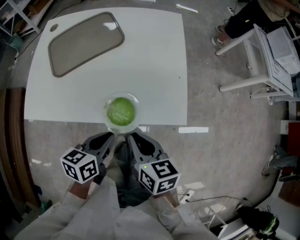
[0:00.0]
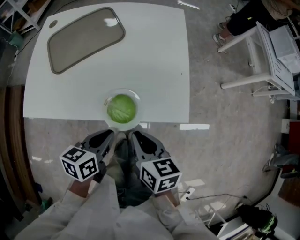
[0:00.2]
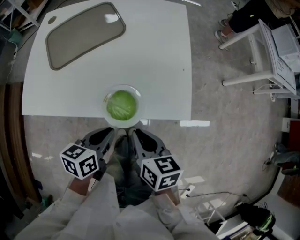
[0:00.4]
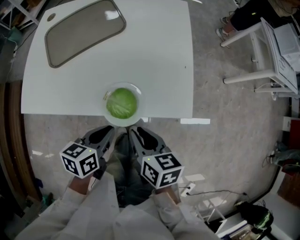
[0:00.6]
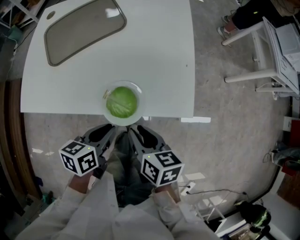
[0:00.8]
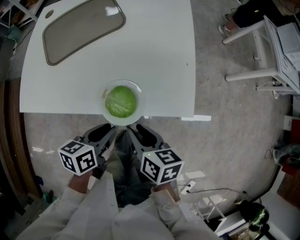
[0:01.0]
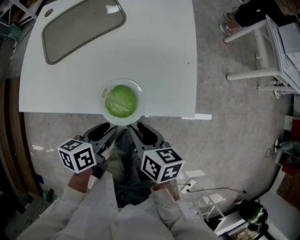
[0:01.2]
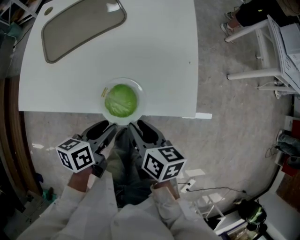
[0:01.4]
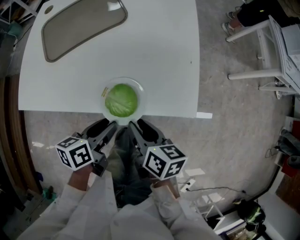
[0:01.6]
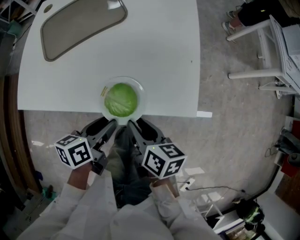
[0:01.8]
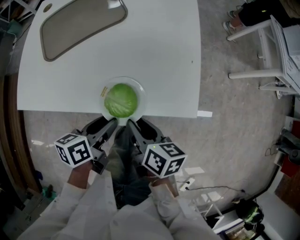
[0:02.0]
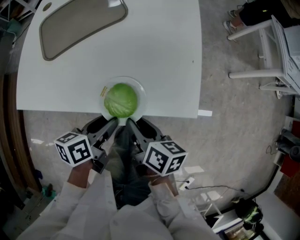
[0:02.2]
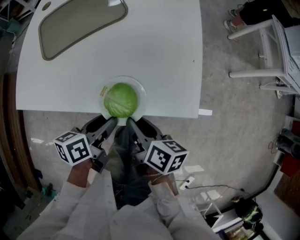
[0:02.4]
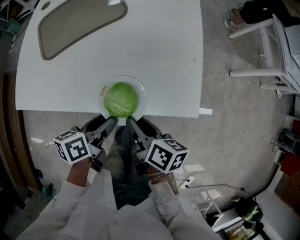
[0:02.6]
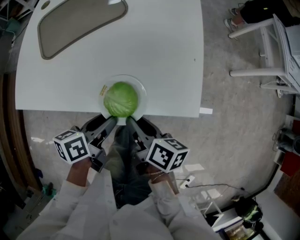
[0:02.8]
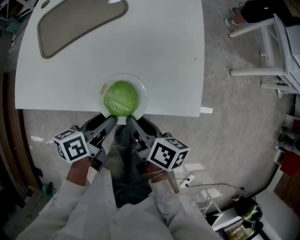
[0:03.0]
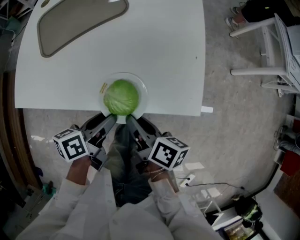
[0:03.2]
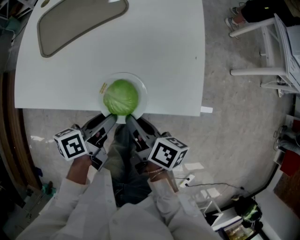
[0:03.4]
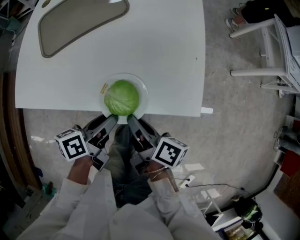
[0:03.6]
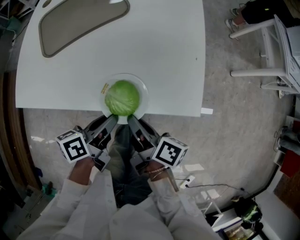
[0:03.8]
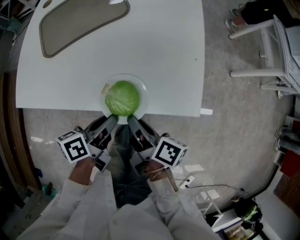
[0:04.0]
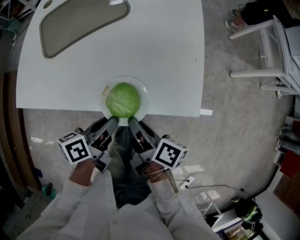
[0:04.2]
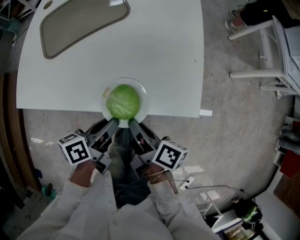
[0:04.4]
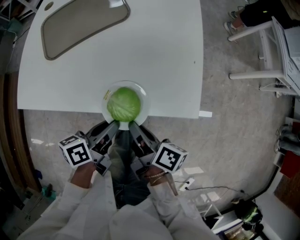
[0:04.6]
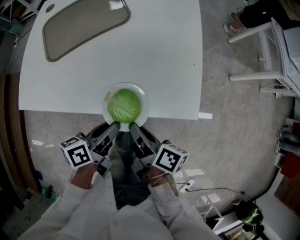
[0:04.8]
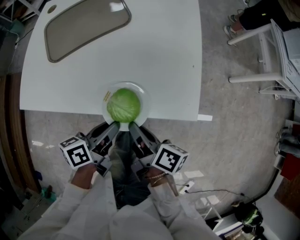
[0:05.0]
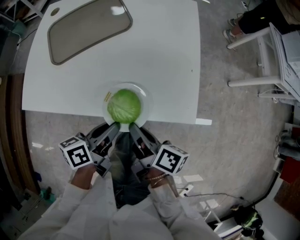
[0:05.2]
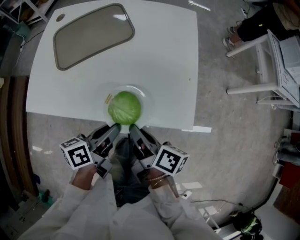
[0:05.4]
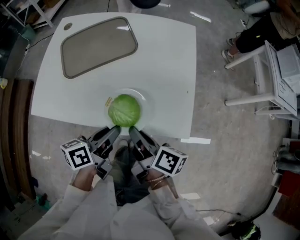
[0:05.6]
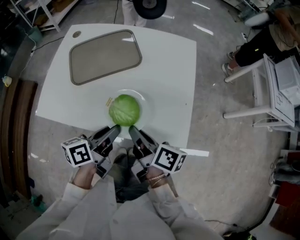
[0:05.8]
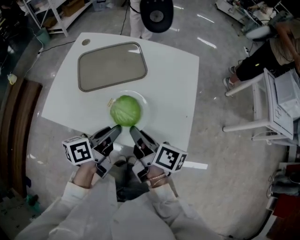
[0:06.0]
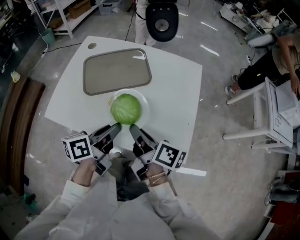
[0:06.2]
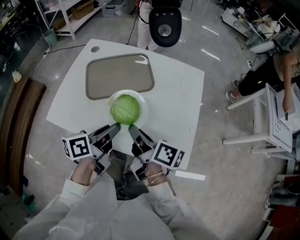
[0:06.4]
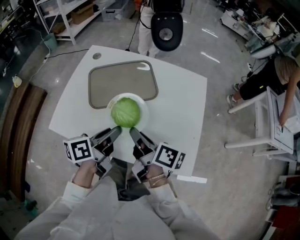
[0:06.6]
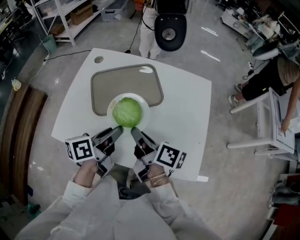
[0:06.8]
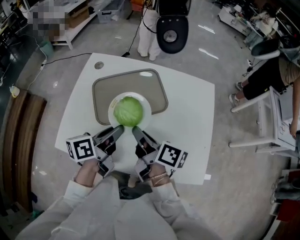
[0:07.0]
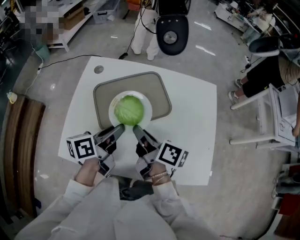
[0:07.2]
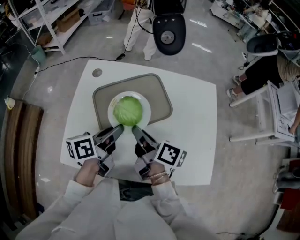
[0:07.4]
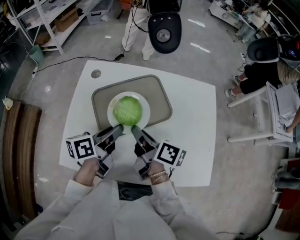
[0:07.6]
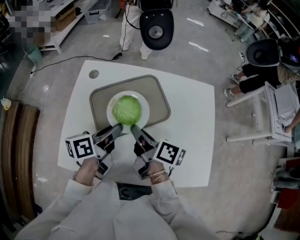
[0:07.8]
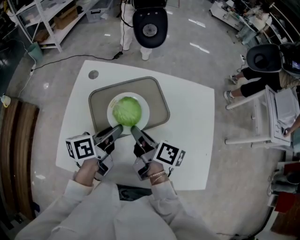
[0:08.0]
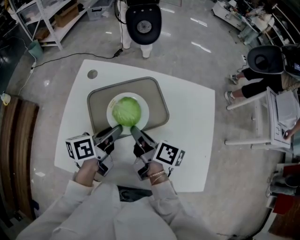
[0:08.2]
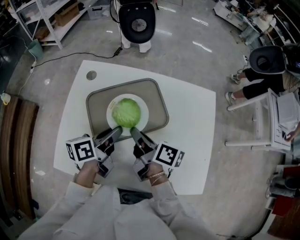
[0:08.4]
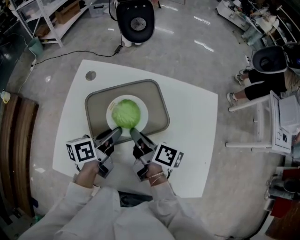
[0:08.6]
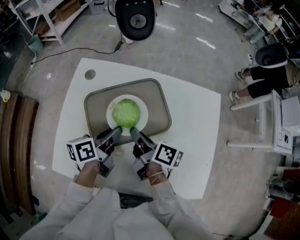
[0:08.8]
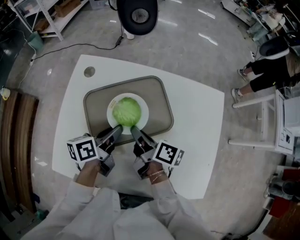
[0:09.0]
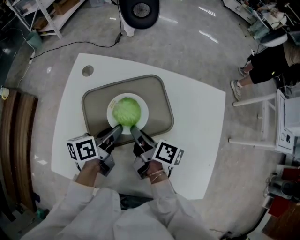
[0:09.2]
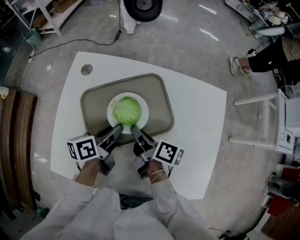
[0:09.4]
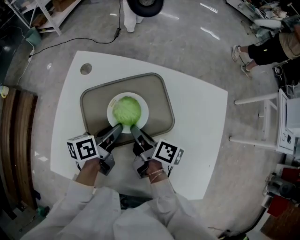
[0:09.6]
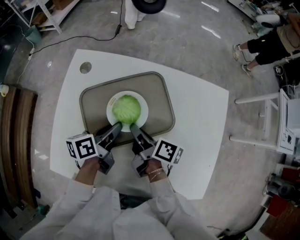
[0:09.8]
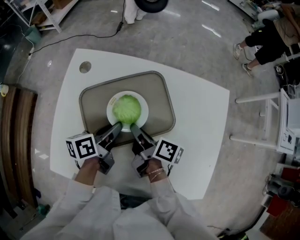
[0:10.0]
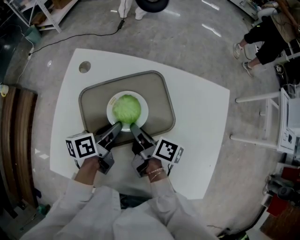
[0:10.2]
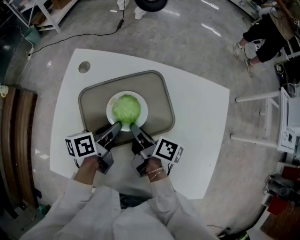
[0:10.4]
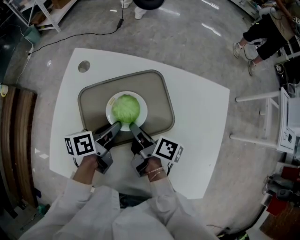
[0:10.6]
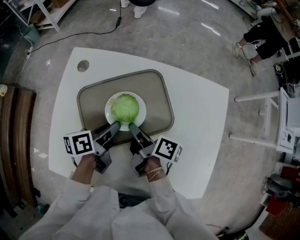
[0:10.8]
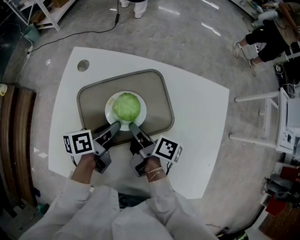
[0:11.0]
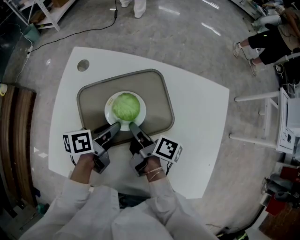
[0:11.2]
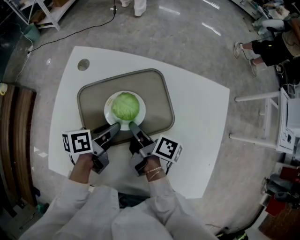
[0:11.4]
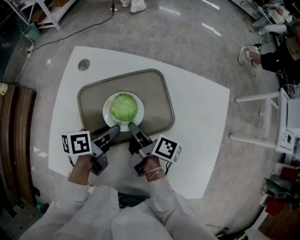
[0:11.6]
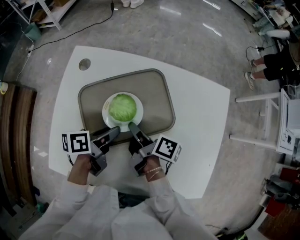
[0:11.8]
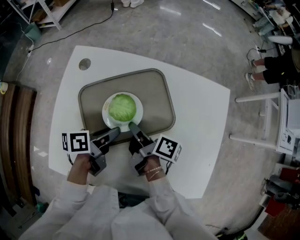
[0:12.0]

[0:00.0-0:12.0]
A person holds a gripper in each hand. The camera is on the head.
0:00.0 to 0:01.6: The two grippers go about 5 cm downward. The right gripper opens up, while the left gripper opens up.
0:01.6 to 0:03.0: There are only small adjustments of the grippers.
0:03.0 to 0:04.4: The right gripper closes up. The left gripper closes up.
0:04.4 to 0:06.0: Both grippers move upward and forward, some 15 cm.
0:06.0 to 0:07.6: Both grippers move forward and to the left, some 25 cm.
0:07.6 to 0:09.0: Both grippers travel together forward and downward, roughly 10 cm.
0:09.0 to 0:12.0: The grippers move only a little.

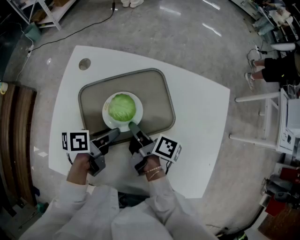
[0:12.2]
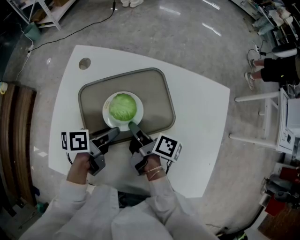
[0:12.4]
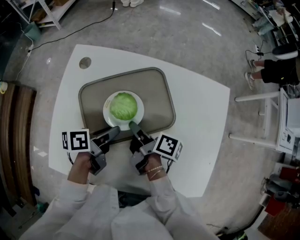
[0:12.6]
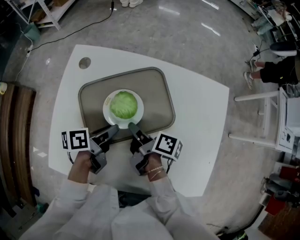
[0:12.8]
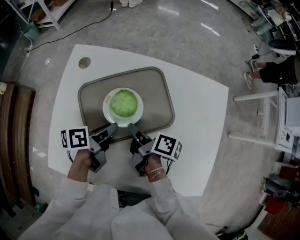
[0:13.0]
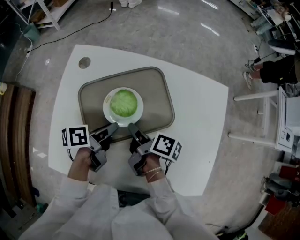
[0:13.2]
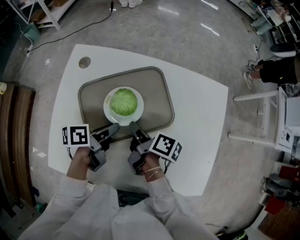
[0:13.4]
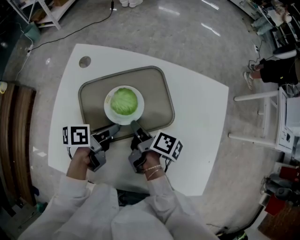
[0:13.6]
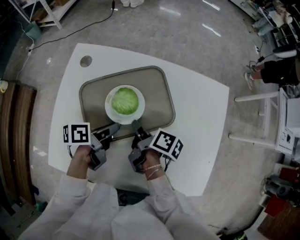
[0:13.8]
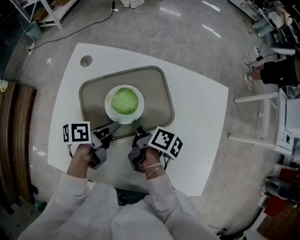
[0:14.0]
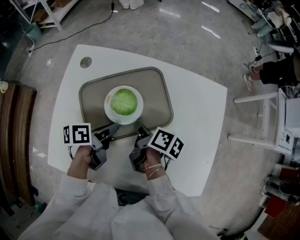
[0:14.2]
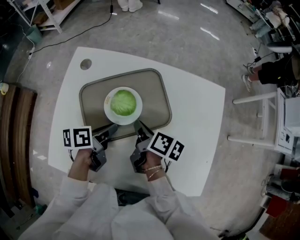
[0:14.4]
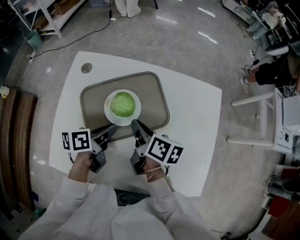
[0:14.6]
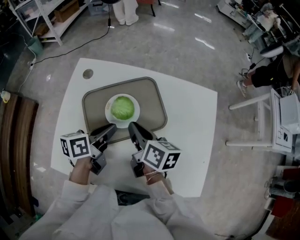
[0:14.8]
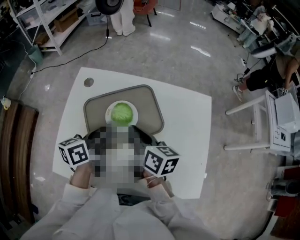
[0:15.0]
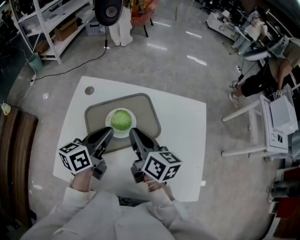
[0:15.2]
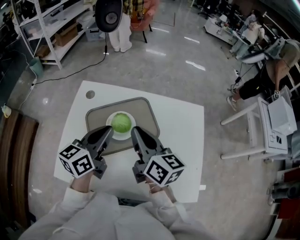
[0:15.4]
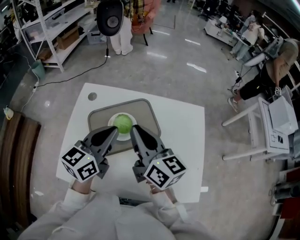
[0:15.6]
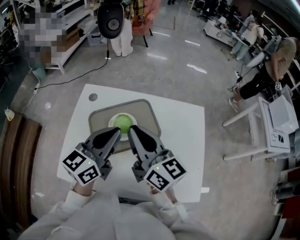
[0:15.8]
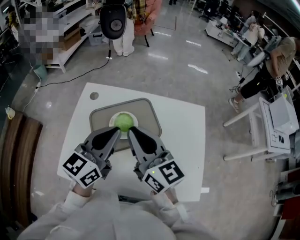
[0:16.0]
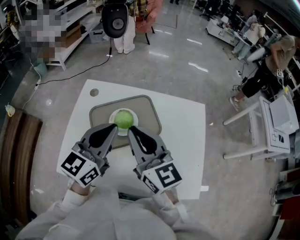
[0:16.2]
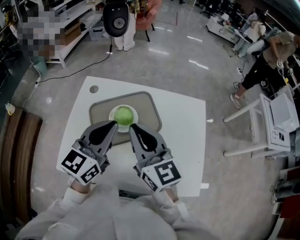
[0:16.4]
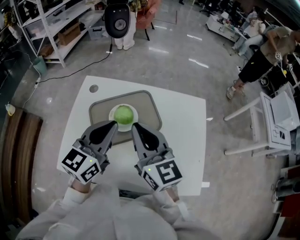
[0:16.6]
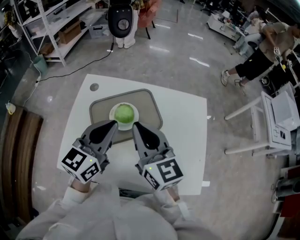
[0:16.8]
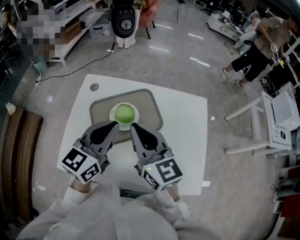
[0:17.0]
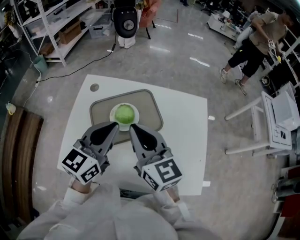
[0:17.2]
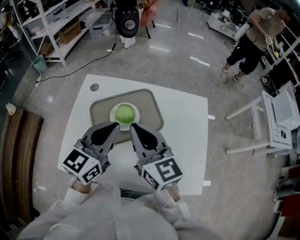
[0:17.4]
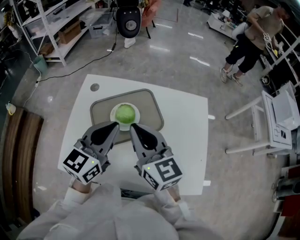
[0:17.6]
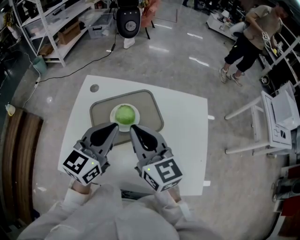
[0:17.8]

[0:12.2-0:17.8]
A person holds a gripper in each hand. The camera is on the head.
0:12.2 to 0:13.6: The grippers stay close to where they were, moving slightly.
0:13.6 to 0:15.0: The grippers both shift upward by some 10 cm. The right gripper rolls counterclockwise, seen from behind, by roughly 40 degrees. Meanwhile the left gripper swivels some 30 degrees.
0:15.0 to 0:16.4: The two grippers go approximately 15 cm upward. The right gripper rotates roughly 40 degrees, while the left gripper rotates around the line of its fingers by approximately 40 degrees, clockwise from behind.
0:16.4 to 0:17.8: The grippers make only small movements.

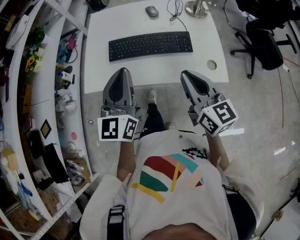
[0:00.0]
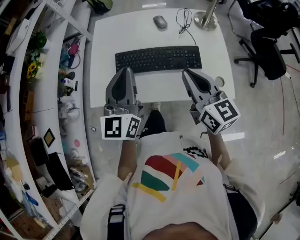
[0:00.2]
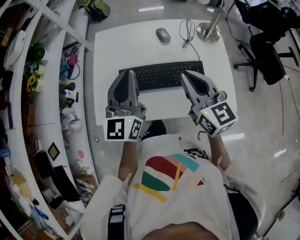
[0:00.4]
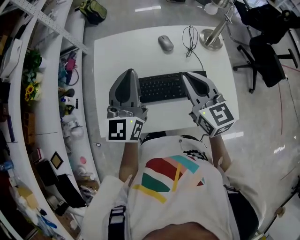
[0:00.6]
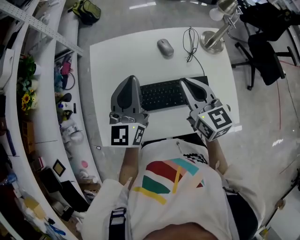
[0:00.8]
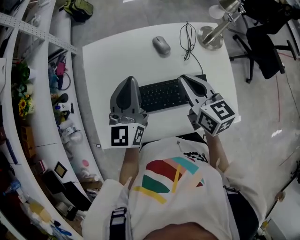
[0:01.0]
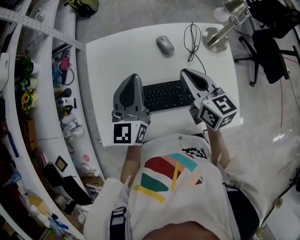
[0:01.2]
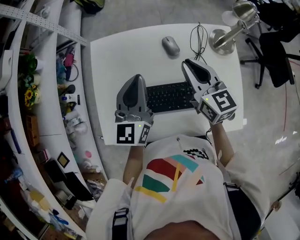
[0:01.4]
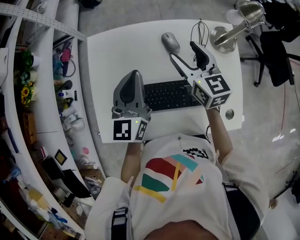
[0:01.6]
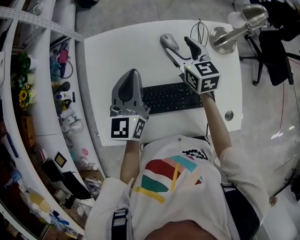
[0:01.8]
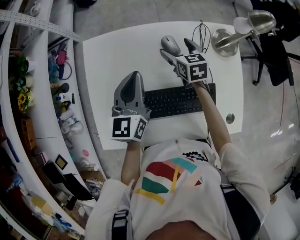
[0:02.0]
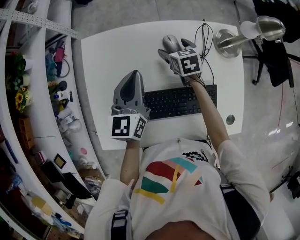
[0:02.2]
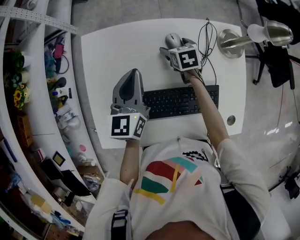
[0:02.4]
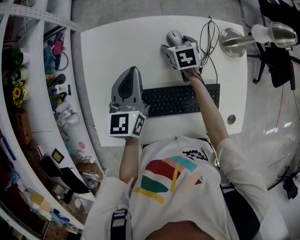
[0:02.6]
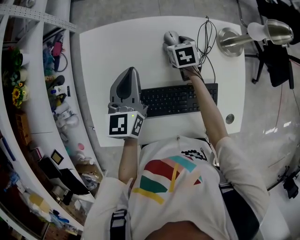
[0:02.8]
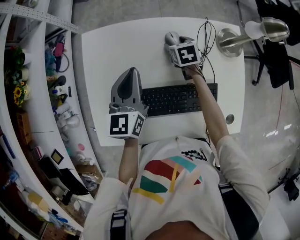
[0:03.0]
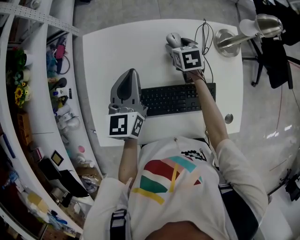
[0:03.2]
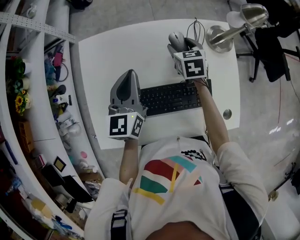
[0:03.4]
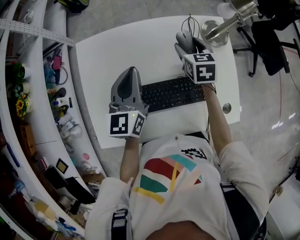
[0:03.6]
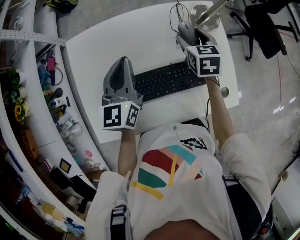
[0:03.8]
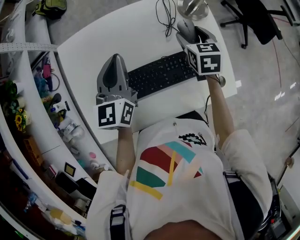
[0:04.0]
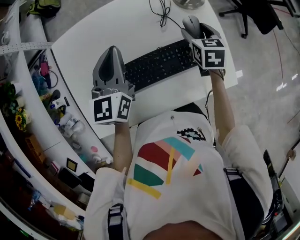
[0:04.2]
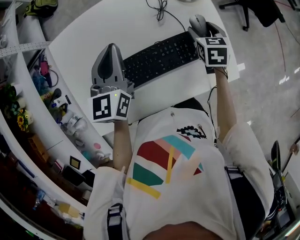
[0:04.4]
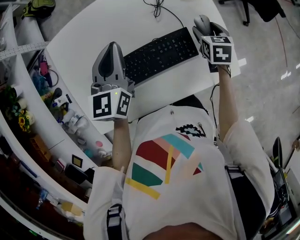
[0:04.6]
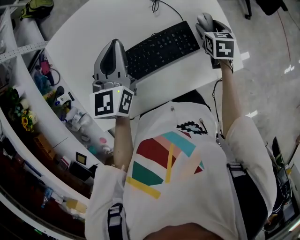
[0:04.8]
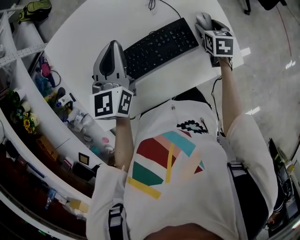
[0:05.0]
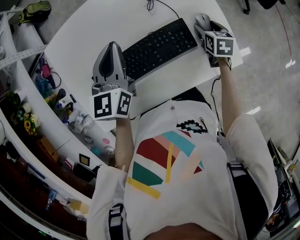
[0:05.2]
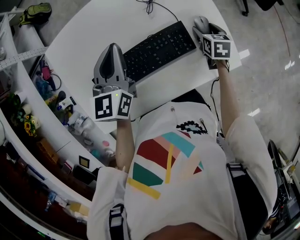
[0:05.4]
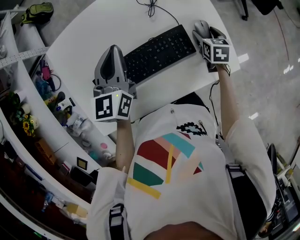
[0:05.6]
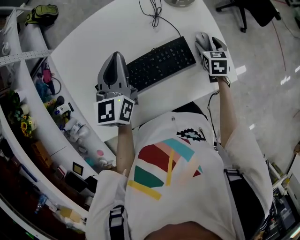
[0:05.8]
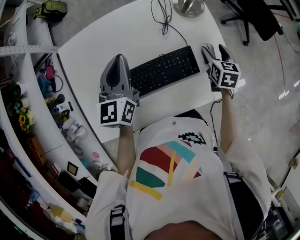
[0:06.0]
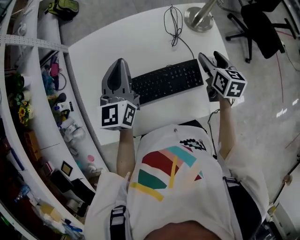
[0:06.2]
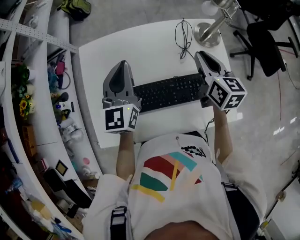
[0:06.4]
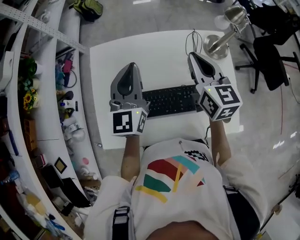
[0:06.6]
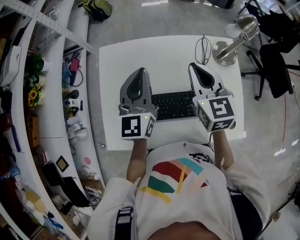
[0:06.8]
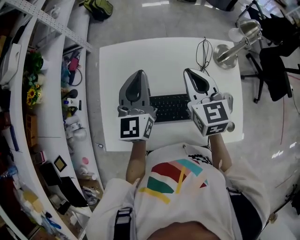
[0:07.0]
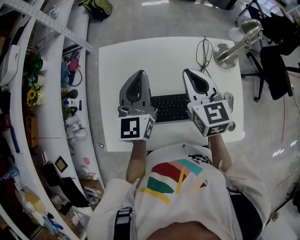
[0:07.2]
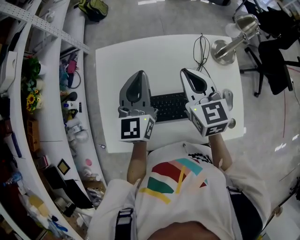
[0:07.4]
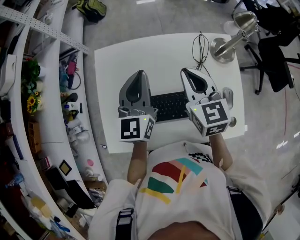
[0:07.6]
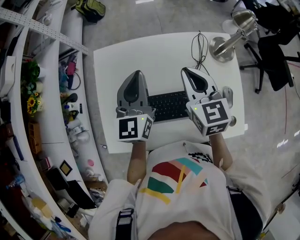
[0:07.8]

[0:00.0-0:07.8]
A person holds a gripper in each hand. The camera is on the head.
0:00.0 to 0:01.6: Both grippers move forward, roughly 40 cm. The right gripper opens up.
0:01.6 to 0:03.2: The right gripper goes about 20 cm downward and forward, and angles its fingers downward, by about 30 degrees. Meanwhile the left gripper moves downward, about 5 cm.
0:03.2 to 0:04.6: The right gripper travels to the right and backward by some 30 cm, and turns by roughly 20 degrees, while the left gripper shifts about 10 cm to the right.
0:04.6 to 0:06.2: The right gripper moves upward, roughly 10 cm, and changes its angle by approximately 20 degrees. Meanwhile the left gripper moves roughly 5 cm.
0:06.2 to 0:07.8: The left gripper shifts by approximately 5 cm; the right gripper moves to the left and upward, about 25 cm, swivels approximately 30 degrees, and closes up.
